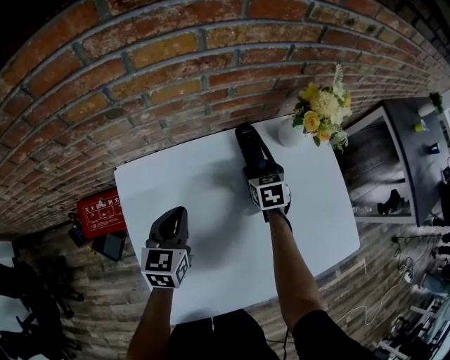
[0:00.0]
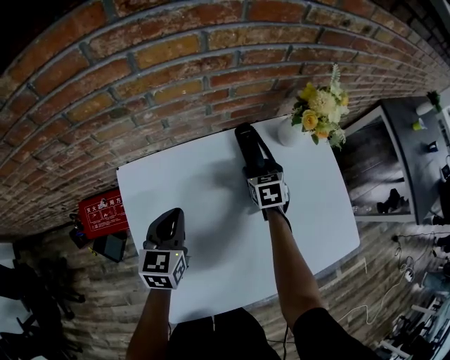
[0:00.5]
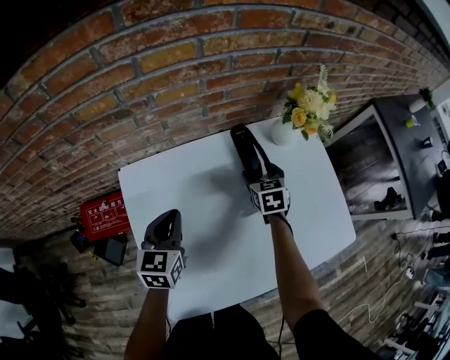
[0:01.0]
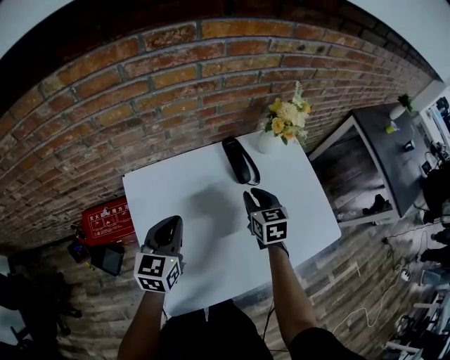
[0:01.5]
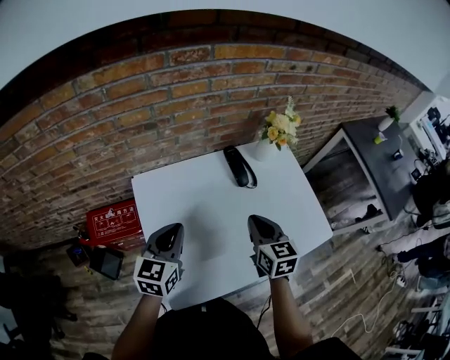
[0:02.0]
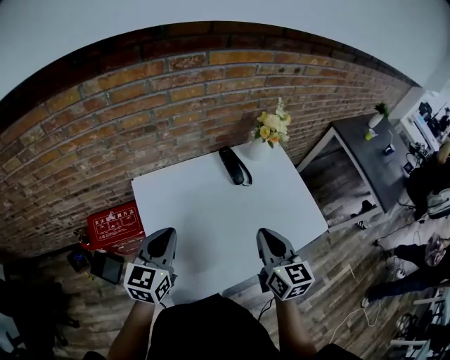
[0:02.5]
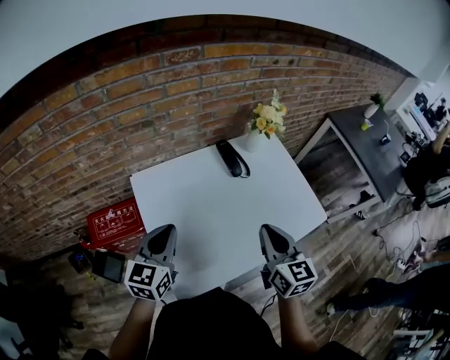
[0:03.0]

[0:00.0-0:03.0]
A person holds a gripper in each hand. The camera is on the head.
0:00.0 to 0:01.5: The right gripper is displaced backward and upward by roughly 15 cm, and closes up; the left gripper travels upward and backward by some 10 cm.
0:01.5 to 0:03.0: The right gripper heads backward and upward, covering roughly 25 cm, and turns by roughly 20 degrees, while the left gripper travels backward and upward by some 15 cm.

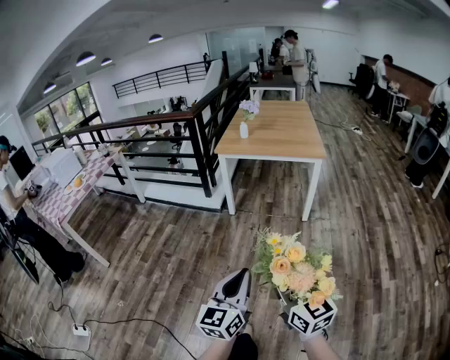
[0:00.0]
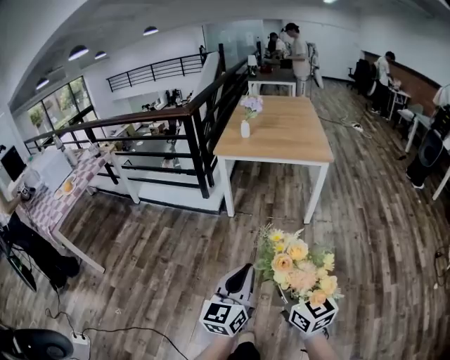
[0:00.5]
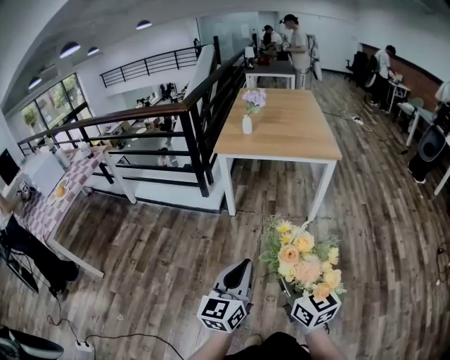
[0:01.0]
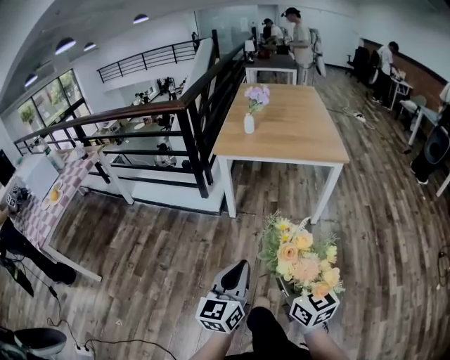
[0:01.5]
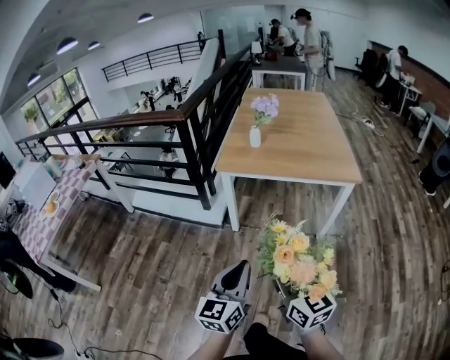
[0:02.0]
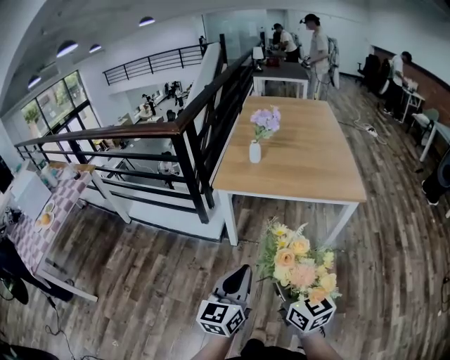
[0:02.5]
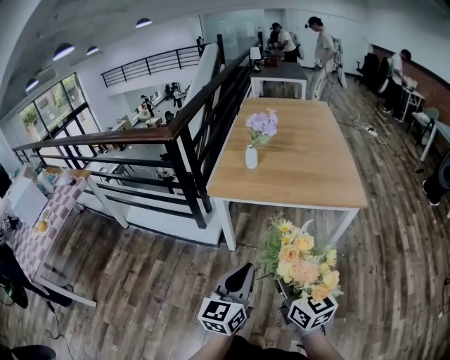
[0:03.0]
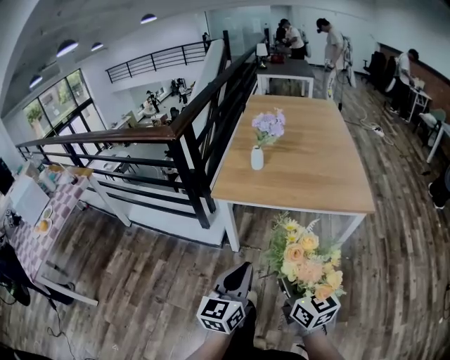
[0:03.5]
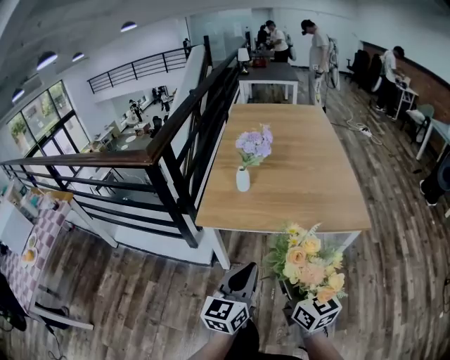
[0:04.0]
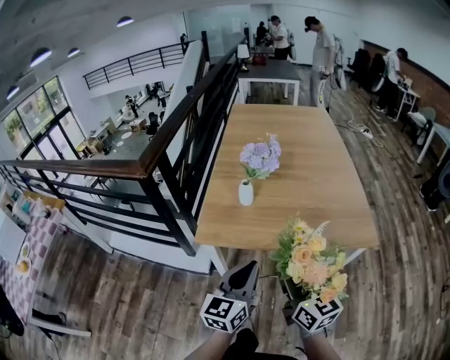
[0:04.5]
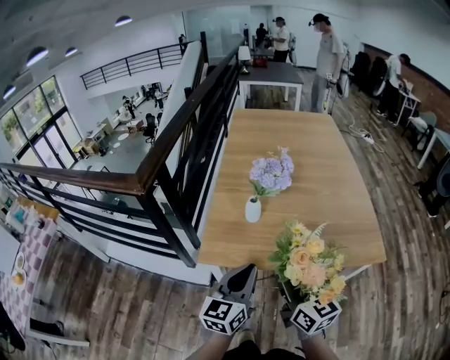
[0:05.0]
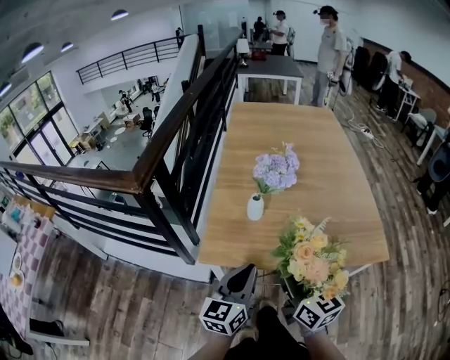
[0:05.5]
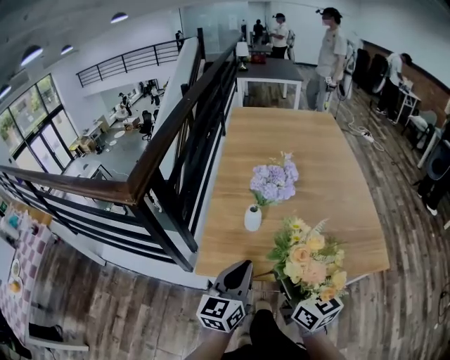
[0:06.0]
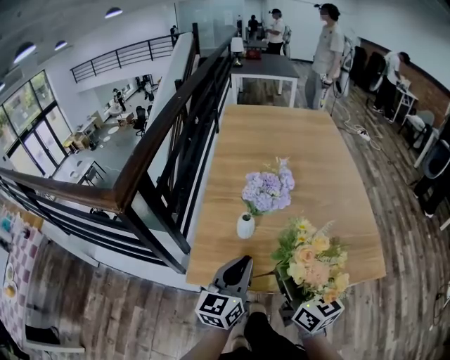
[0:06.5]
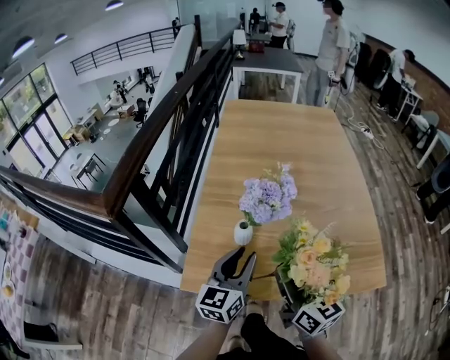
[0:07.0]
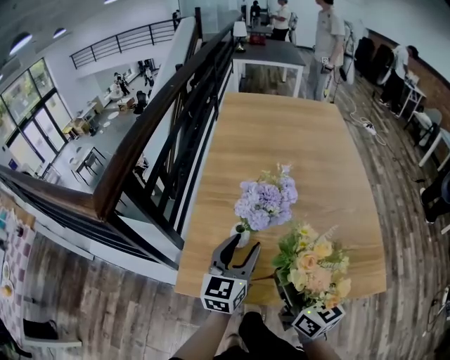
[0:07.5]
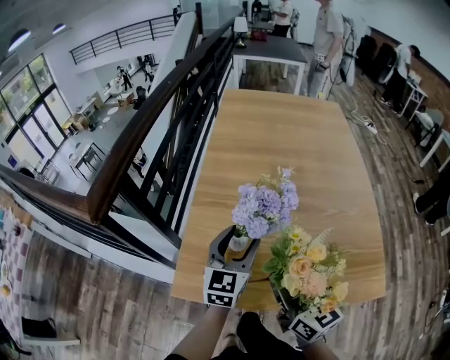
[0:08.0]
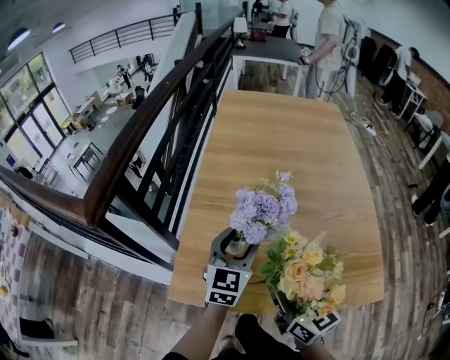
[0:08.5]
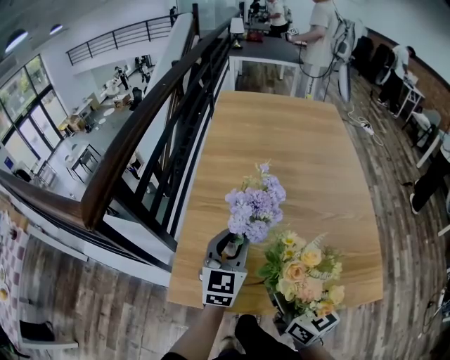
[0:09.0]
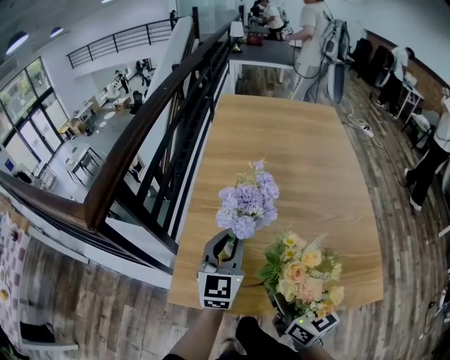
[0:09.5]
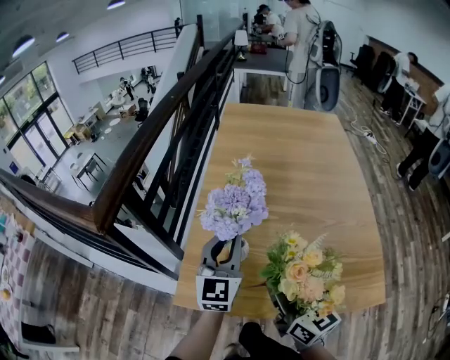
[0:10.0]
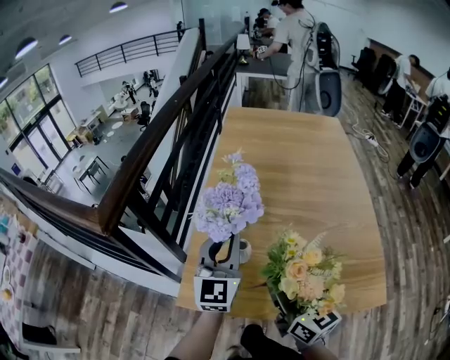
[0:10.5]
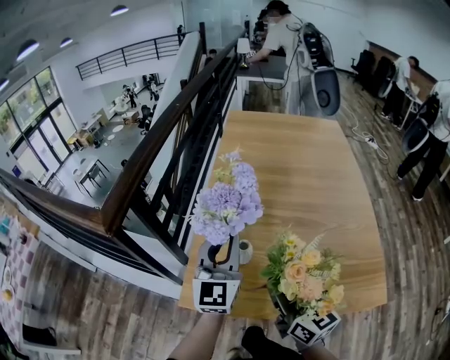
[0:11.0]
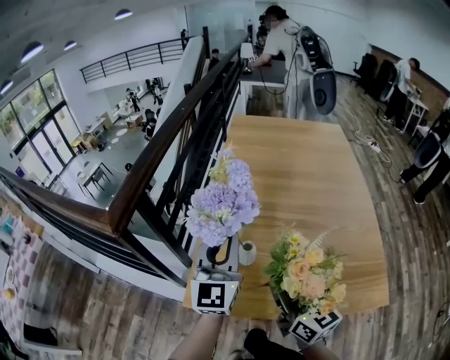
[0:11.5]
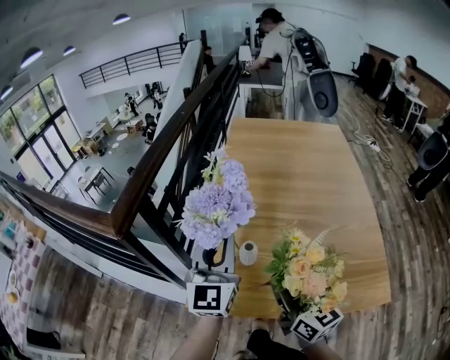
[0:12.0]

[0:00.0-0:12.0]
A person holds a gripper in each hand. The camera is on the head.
0:00.0 to 0:02.0: Both grippers are carried forward, about 40 cm.
0:02.0 to 0:04.0: Both grippers travel together forward, some 30 cm.
0:04.0 to 0:06.0: The grippers both shift forward by some 25 cm.
0:06.0 to 0:08.0: The right gripper travels forward by some 10 cm. The left gripper shifts roughly 20 cm forward, and opens up.
0:08.0 to 0:10.0: The left gripper travels upward by about 5 cm, and closes.
0:10.0 to 0:12.0: The left gripper shifts about 10 cm upward.

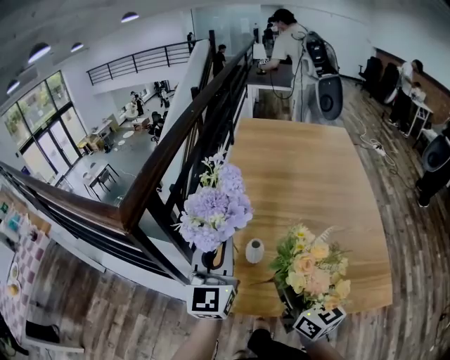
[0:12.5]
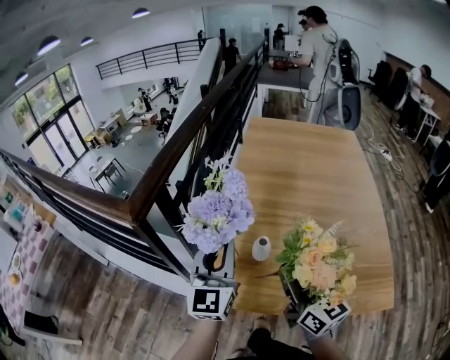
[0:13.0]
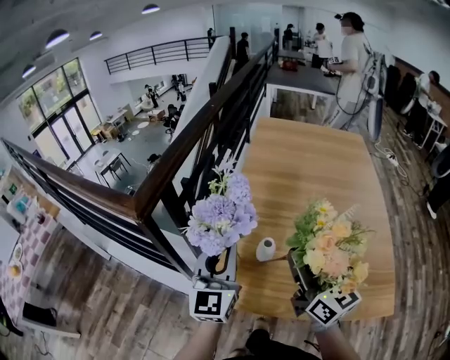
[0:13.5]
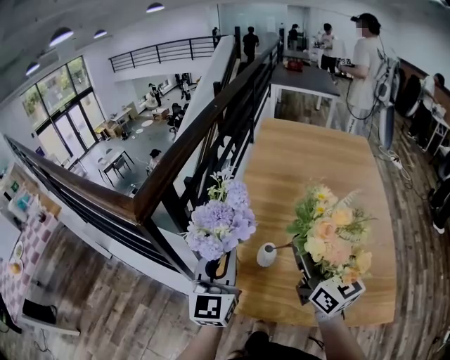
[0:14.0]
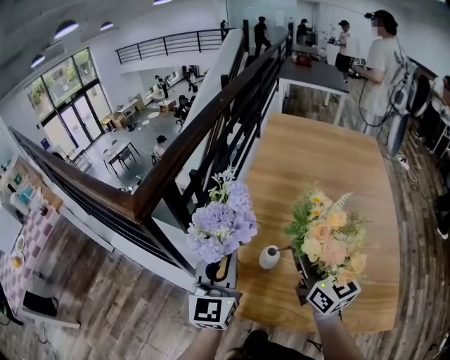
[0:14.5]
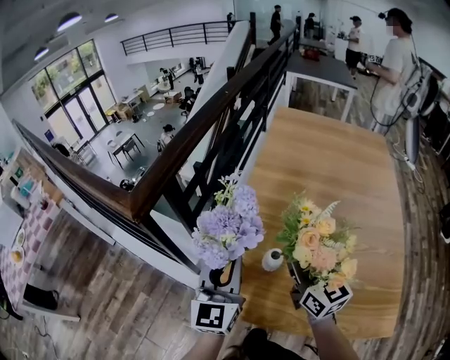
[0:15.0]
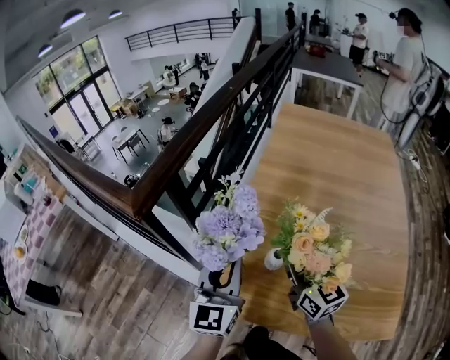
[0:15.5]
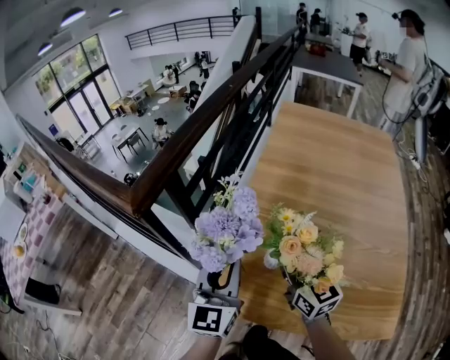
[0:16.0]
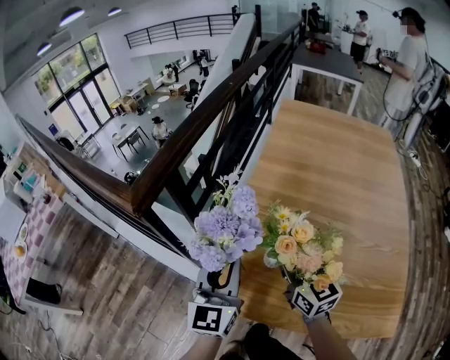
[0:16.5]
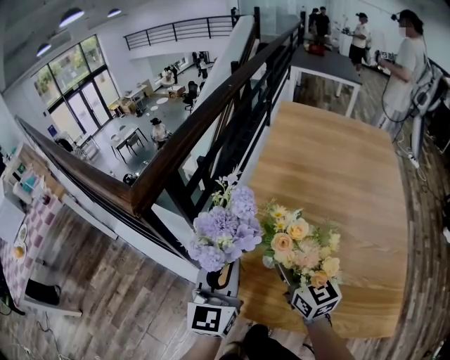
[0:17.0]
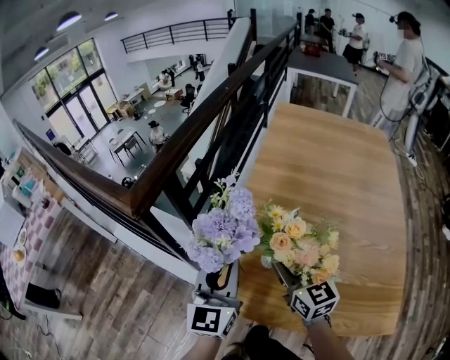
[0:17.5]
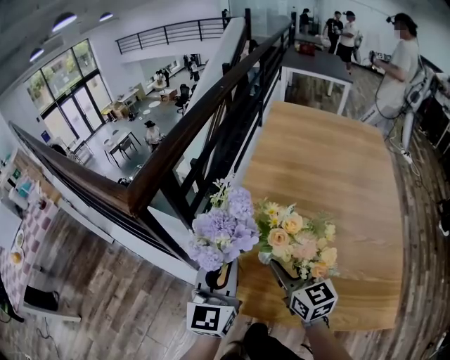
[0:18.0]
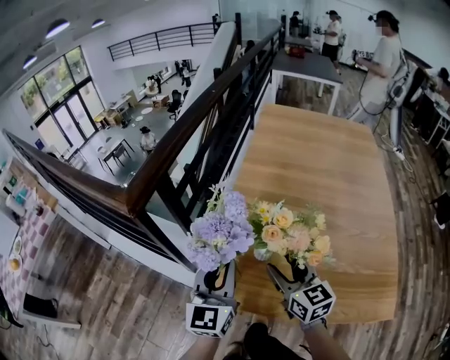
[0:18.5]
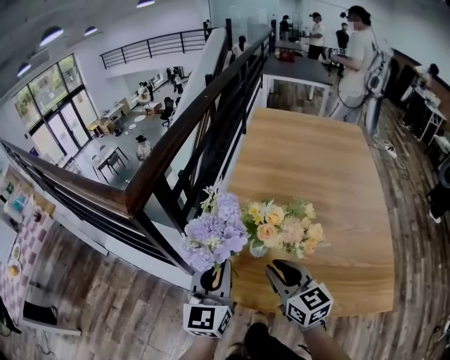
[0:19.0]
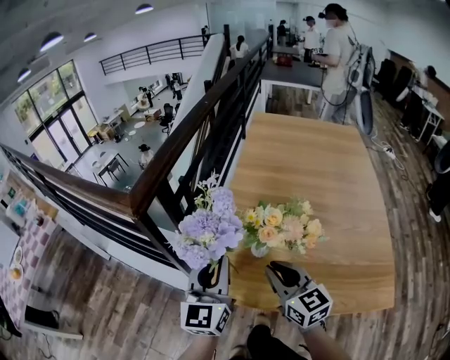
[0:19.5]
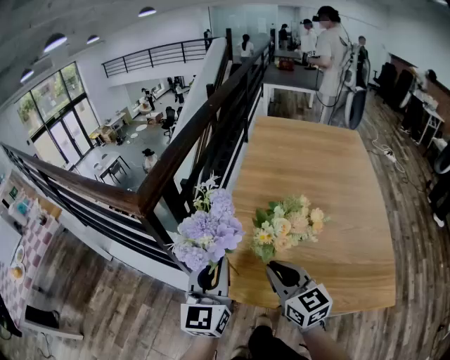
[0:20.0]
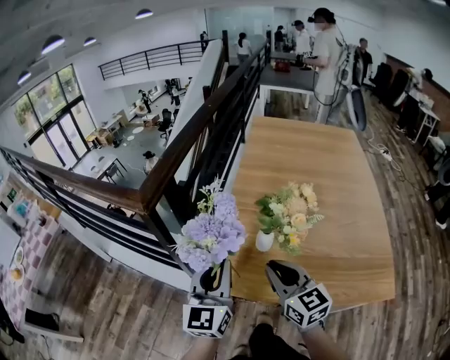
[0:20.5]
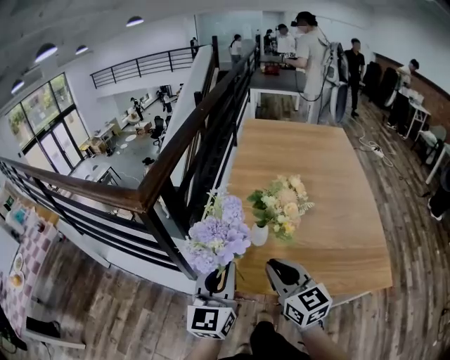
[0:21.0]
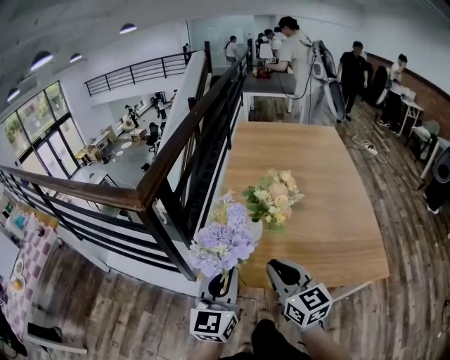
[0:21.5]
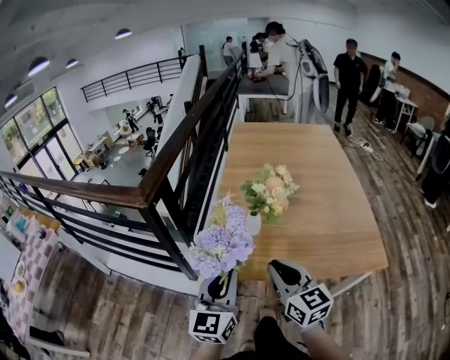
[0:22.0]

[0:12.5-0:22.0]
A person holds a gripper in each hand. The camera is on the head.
0:12.5 to 0:14.5: The right gripper heads forward, covering roughly 10 cm, while the left gripper shifts roughly 5 cm downward.
0:14.5 to 0:16.5: The right gripper shifts roughly 10 cm downward.
0:16.5 to 0:18.0: The right gripper opens.
0:18.0 to 0:20.0: Both grippers move backward, approximately 5 cm. The right gripper closes.
0:20.0 to 0:22.0: The two grippers go approximately 15 cm backward.

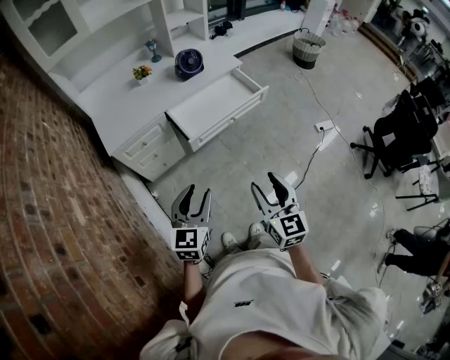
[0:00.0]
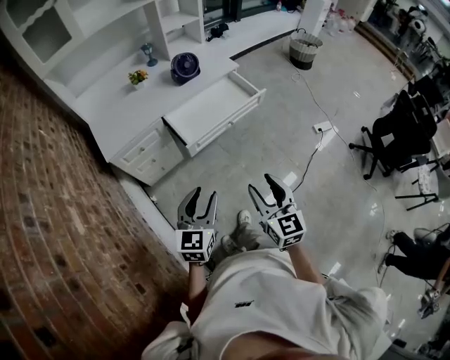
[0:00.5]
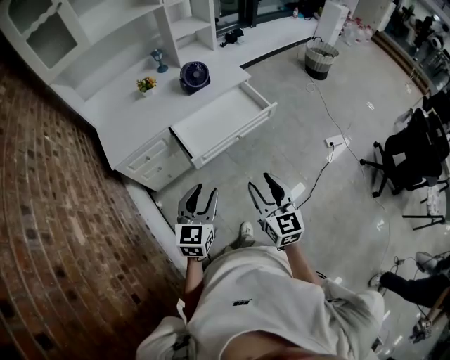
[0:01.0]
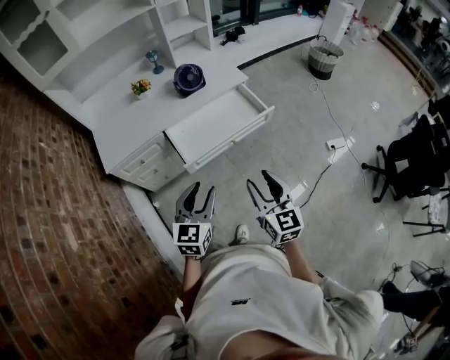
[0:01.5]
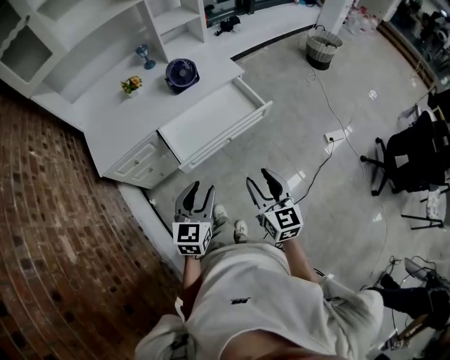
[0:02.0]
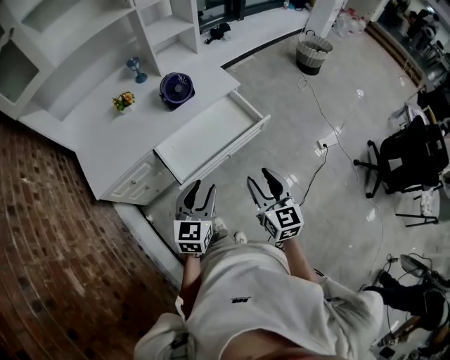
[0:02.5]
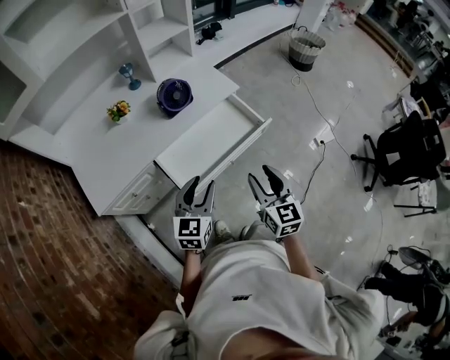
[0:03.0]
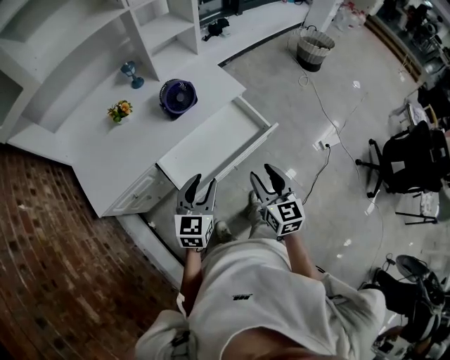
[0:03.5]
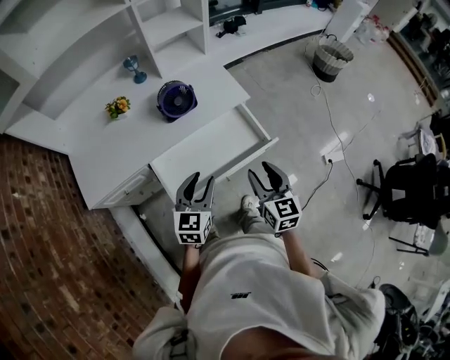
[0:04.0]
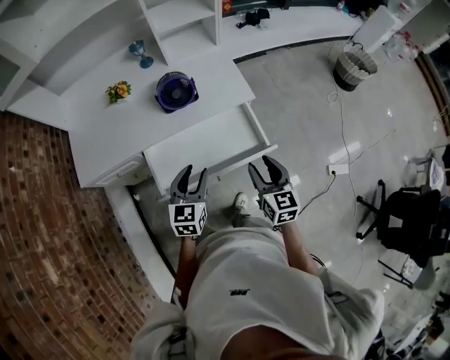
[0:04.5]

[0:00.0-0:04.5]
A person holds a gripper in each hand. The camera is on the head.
0:00.0 to 0:02.0: The right gripper moves forward, approximately 20 cm, while the left gripper travels forward and to the right by approximately 20 cm.
0:02.0 to 0:04.5: Both grippers travel together forward, about 30 cm.
